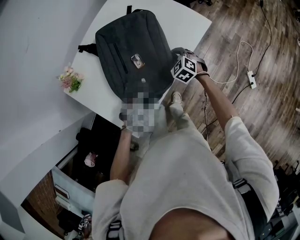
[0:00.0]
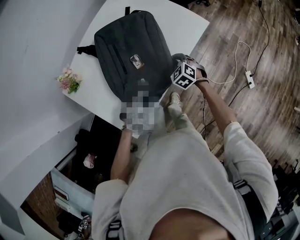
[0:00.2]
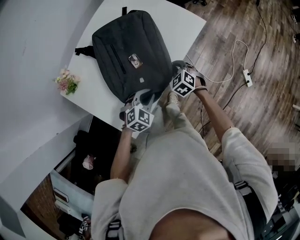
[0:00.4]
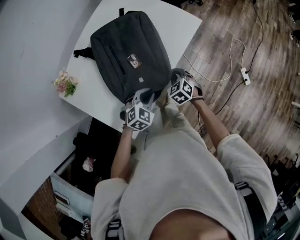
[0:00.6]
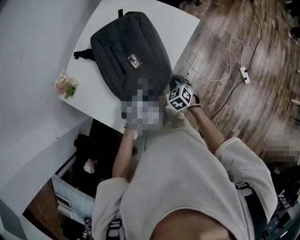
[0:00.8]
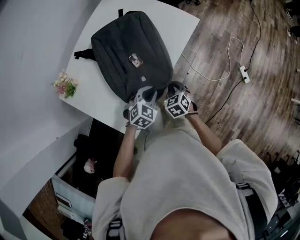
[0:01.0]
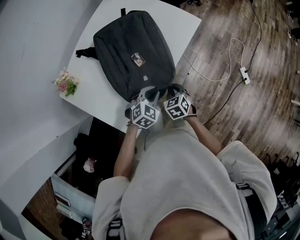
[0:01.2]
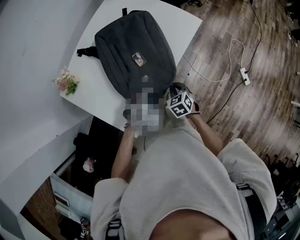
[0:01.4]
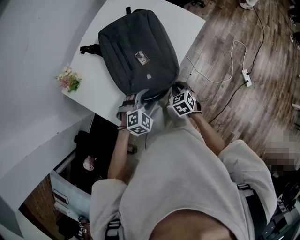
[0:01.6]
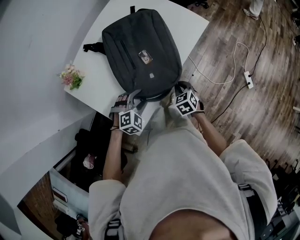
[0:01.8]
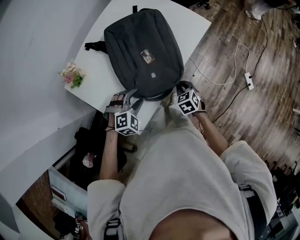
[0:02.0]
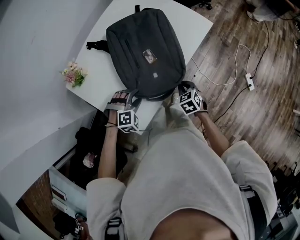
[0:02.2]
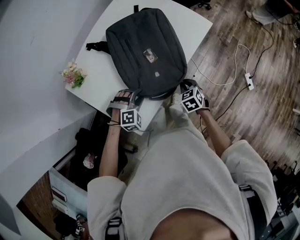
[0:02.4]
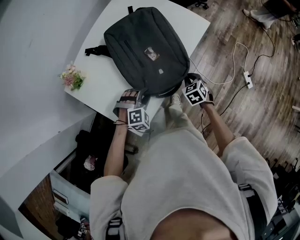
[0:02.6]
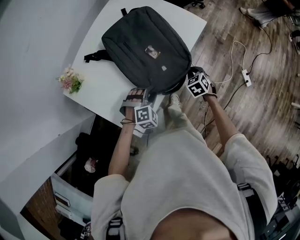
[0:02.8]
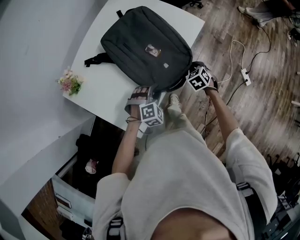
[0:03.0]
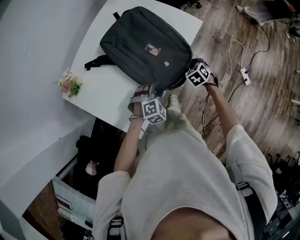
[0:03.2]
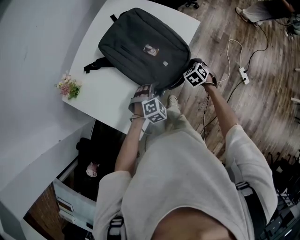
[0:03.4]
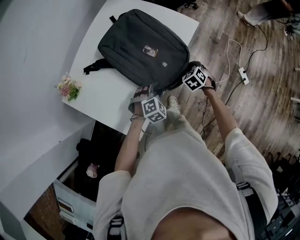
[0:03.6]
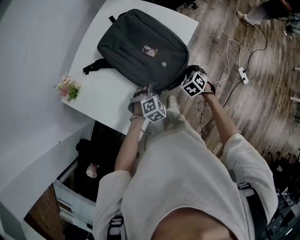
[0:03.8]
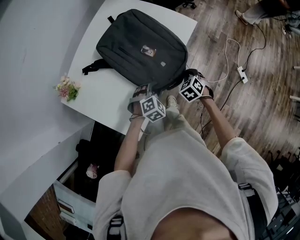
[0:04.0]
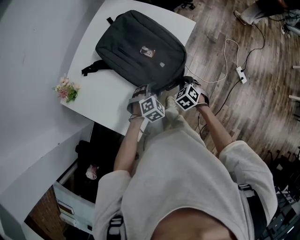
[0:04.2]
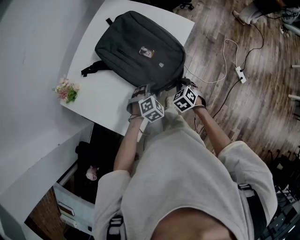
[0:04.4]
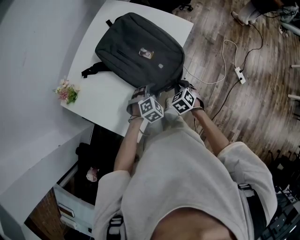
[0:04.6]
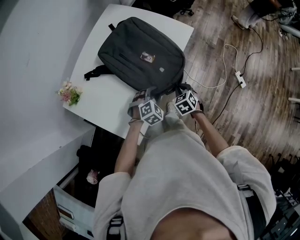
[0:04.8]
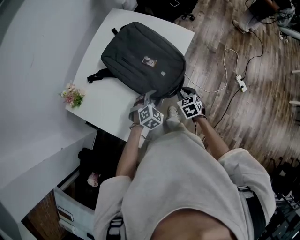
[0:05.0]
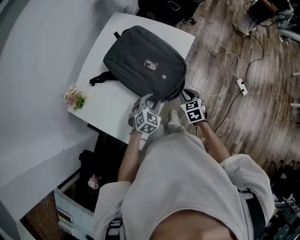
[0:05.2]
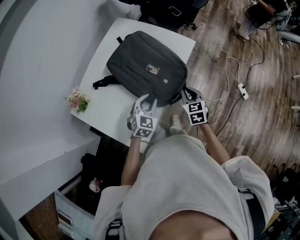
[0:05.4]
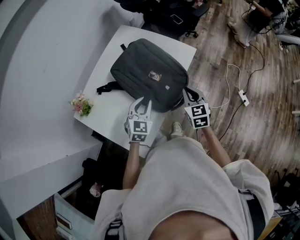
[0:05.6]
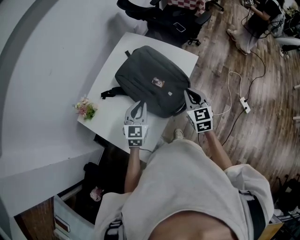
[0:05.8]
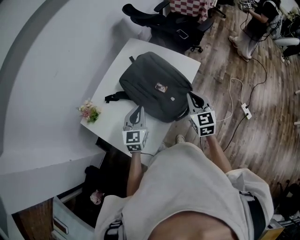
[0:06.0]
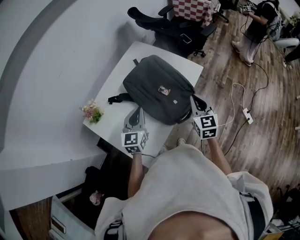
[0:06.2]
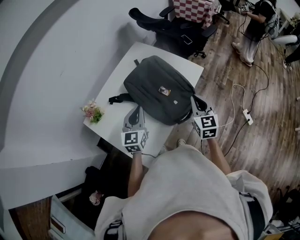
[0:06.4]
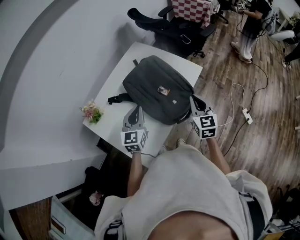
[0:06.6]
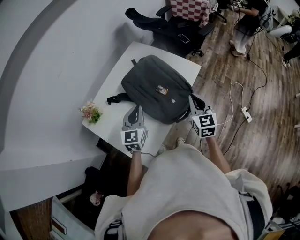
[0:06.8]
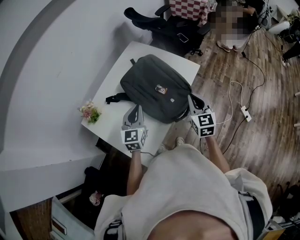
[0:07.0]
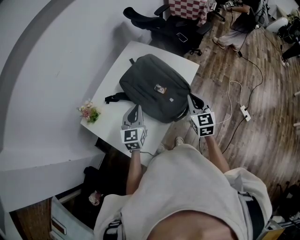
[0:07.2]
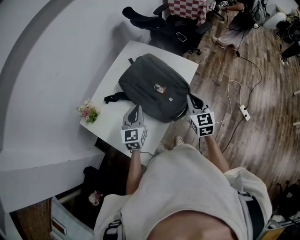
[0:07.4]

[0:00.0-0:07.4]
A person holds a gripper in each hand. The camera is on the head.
0.0 to 1.4 s: The right gripper is displaced backward by some 15 cm, and turns by about 30 degrees. The left gripper opens its fingers.
1.4 to 3.0 s: The left gripper reaches some 15 cm to the left, then returns, and swivels about 20 degrees; the right gripper goes about 15 cm forward and to the right.
3.0 to 4.4 s: The right gripper heads backward, covering roughly 10 cm.
4.4 to 6.0 s: The right gripper is displaced upward by approximately 25 cm, and angles its fingers upward, by approximately 40 degrees. The left gripper heads upward and to the left, covering about 25 cm, tilts its fingers some 40 degrees upward, and closes its fingers.
6.0 to 7.4 s: There are only small adjustments of the grippers.

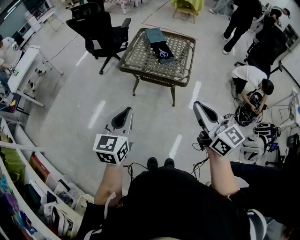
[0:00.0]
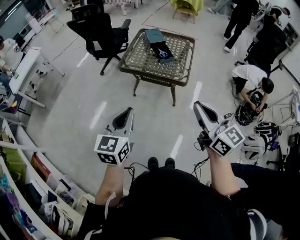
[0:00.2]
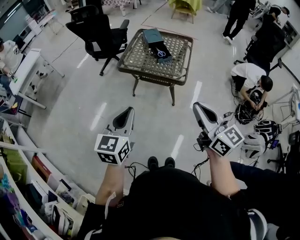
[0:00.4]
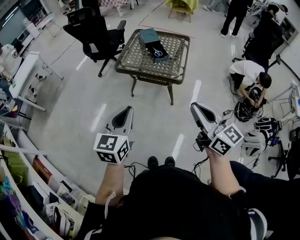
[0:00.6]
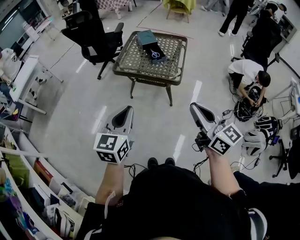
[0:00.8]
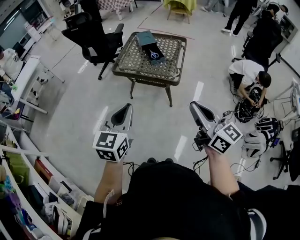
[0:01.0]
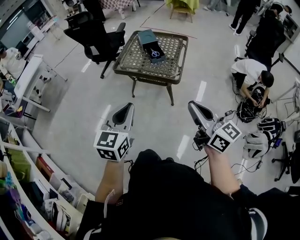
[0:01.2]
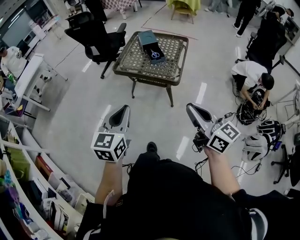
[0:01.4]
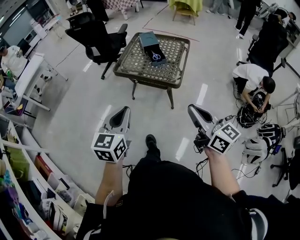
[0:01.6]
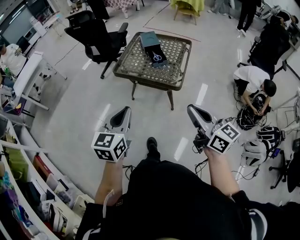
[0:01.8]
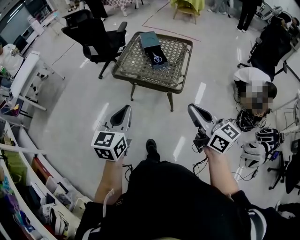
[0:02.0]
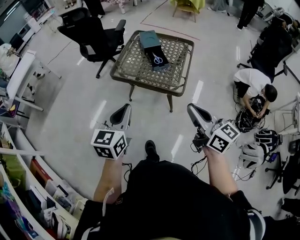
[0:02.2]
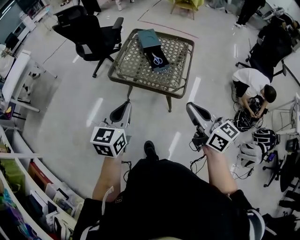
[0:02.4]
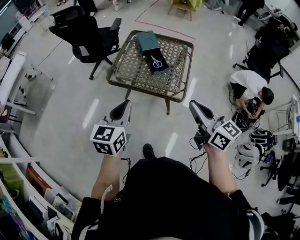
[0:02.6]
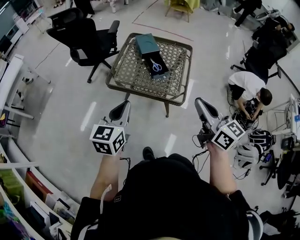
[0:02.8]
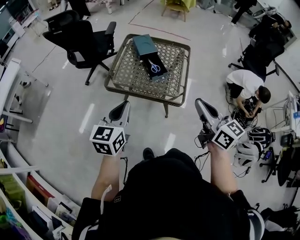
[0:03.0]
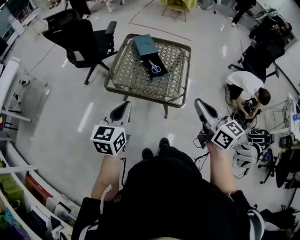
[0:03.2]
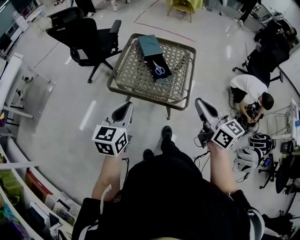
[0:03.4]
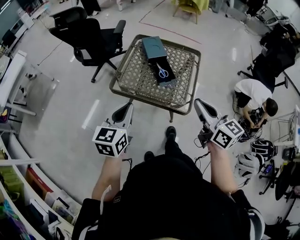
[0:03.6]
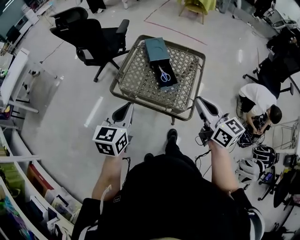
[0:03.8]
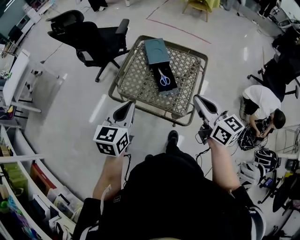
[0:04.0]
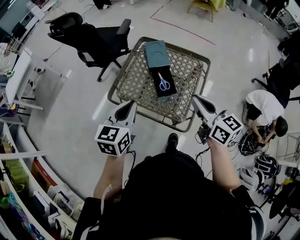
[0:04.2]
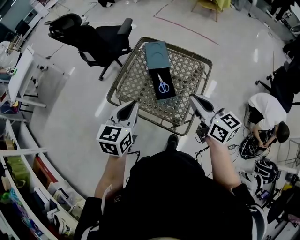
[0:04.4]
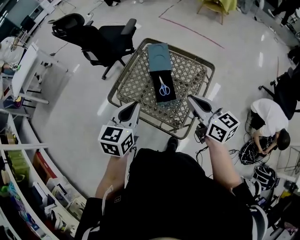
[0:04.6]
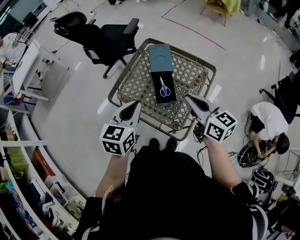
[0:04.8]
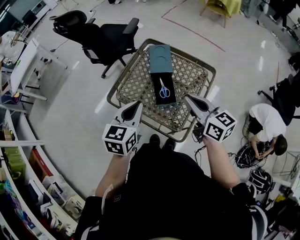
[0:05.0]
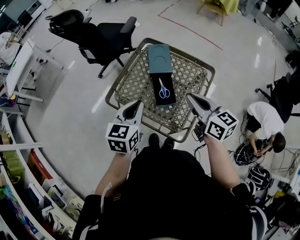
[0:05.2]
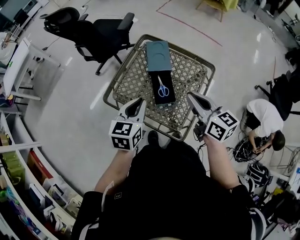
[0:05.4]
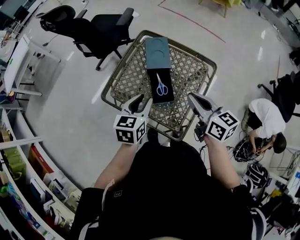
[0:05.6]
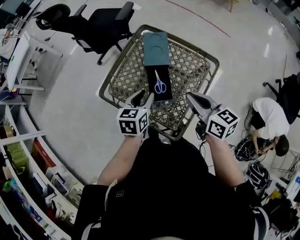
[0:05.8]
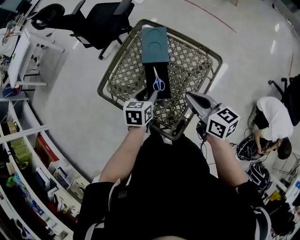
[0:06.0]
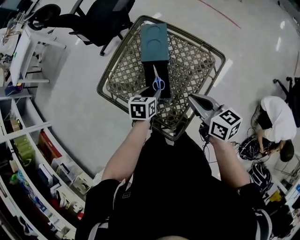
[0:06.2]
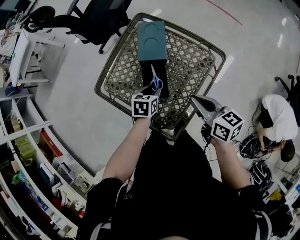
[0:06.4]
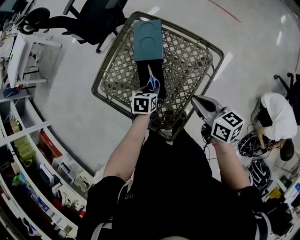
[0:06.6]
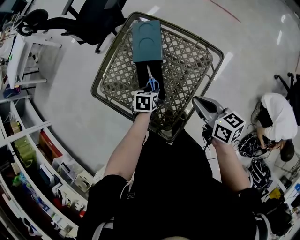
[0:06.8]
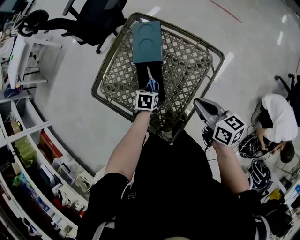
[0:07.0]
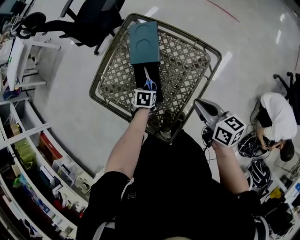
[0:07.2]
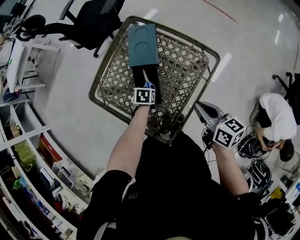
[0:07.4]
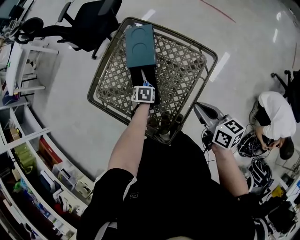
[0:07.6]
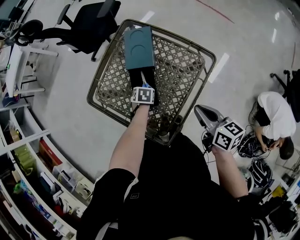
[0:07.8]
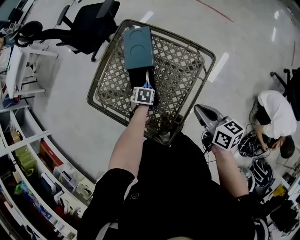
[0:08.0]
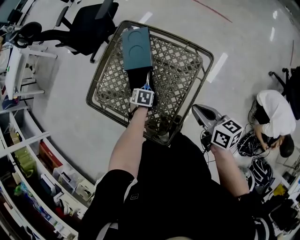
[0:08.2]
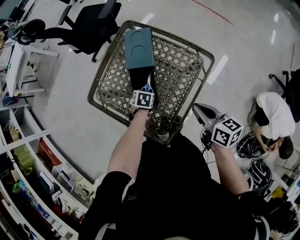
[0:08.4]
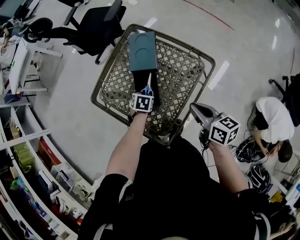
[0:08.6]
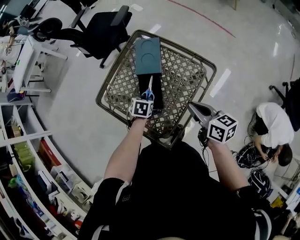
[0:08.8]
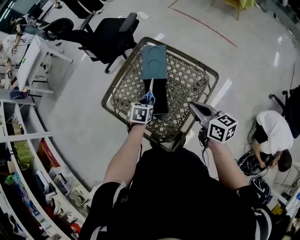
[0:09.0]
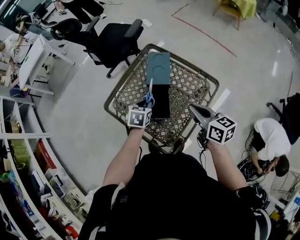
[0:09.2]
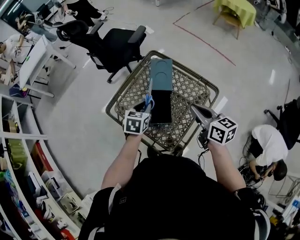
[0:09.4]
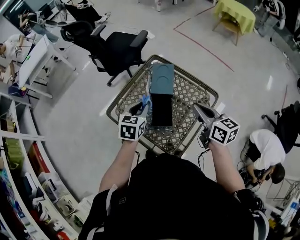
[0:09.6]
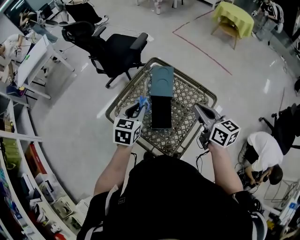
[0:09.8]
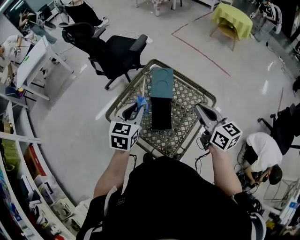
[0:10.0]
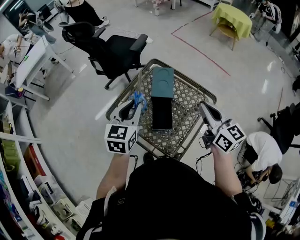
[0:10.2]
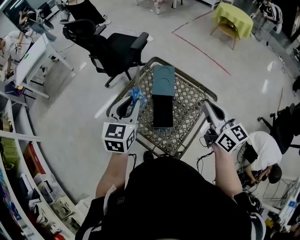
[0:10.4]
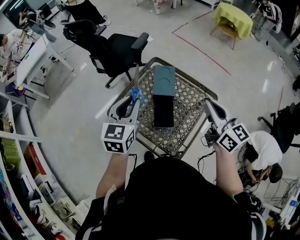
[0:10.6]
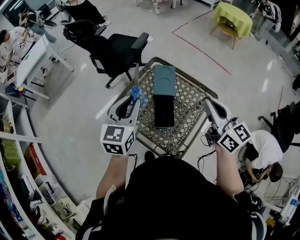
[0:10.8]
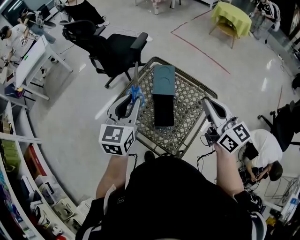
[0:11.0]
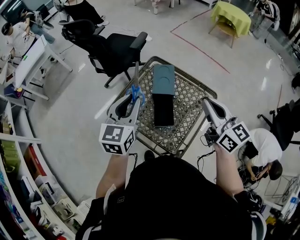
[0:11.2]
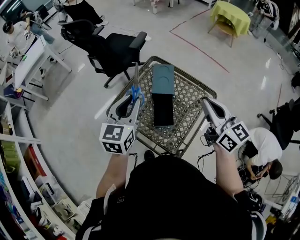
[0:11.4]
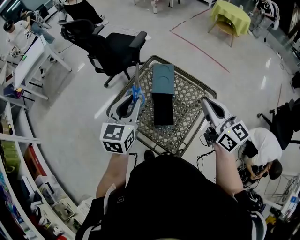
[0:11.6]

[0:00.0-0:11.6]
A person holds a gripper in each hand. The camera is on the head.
0.0 to 1.4 s: The grippers both shift to the right by some 10 cm.
1.4 to 2.8 s: The grippers both shift forward by about 25 cm.
2.8 to 4.4 s: The left gripper shifts some 25 cm forward and to the right. Meanwhile the right gripper goes approximately 25 cm forward.
4.4 to 5.8 s: The left gripper is displaced downward, forward and to the right by approximately 20 cm, and opens. The right gripper goes approximately 10 cm forward and downward.
5.8 to 7.2 s: The left gripper goes some 25 cm downward, and points its fingers some 30 degrees further downward, while the right gripper shifts approximately 15 cm to the right and downward.
7.2 to 8.8 s: The left gripper moves upward, approximately 5 cm.
8.8 to 10.2 s: The right gripper shifts about 15 cm upward, and rotates roughly 30 degrees; the left gripper travels upward by approximately 30 cm, and points its fingers approximately 40 degrees further upward.
10.2 to 11.6 s: The grippers make only small movements.

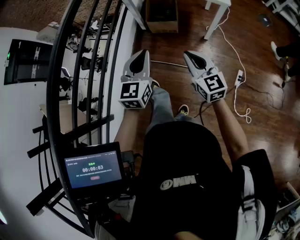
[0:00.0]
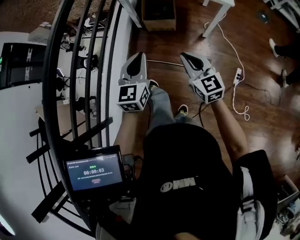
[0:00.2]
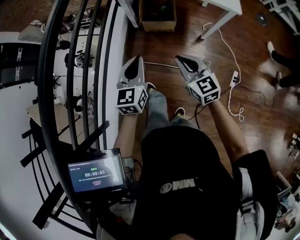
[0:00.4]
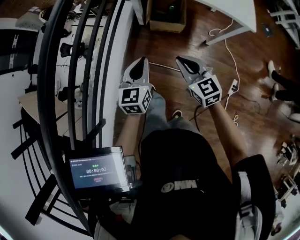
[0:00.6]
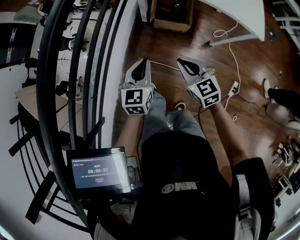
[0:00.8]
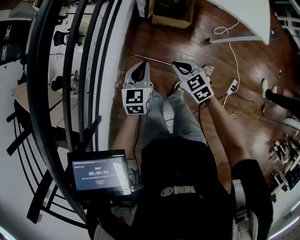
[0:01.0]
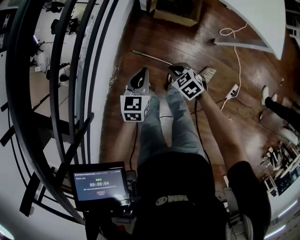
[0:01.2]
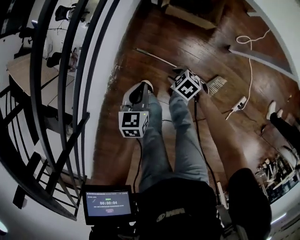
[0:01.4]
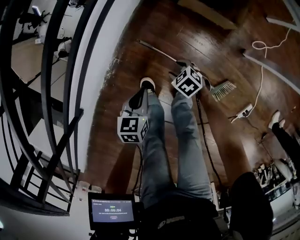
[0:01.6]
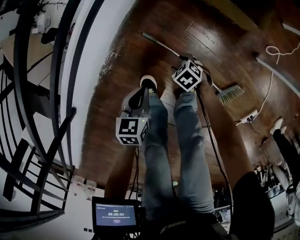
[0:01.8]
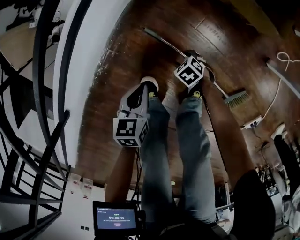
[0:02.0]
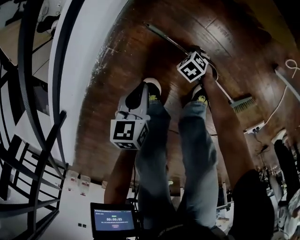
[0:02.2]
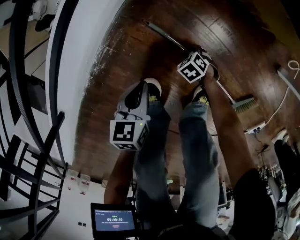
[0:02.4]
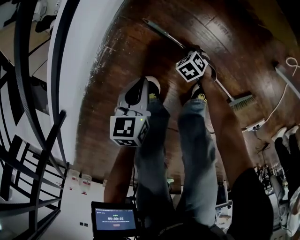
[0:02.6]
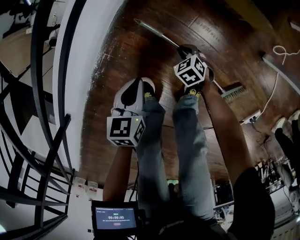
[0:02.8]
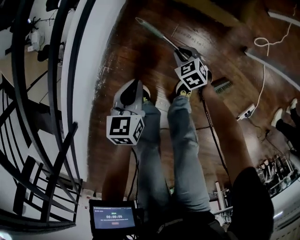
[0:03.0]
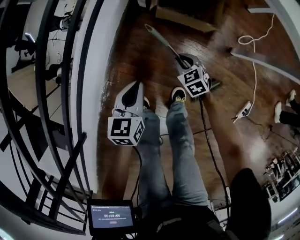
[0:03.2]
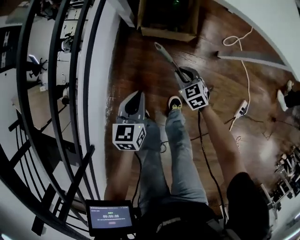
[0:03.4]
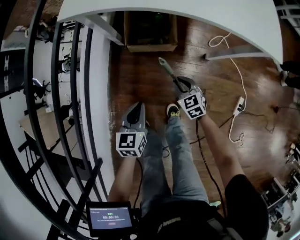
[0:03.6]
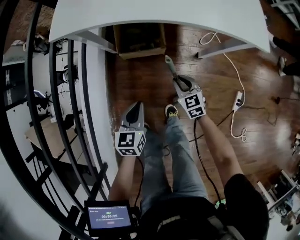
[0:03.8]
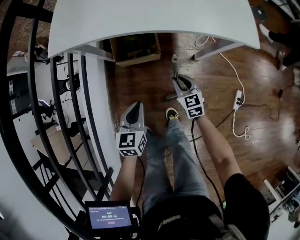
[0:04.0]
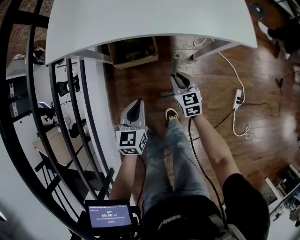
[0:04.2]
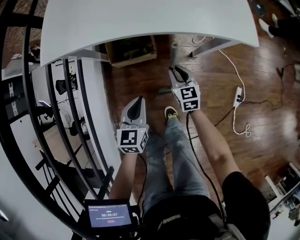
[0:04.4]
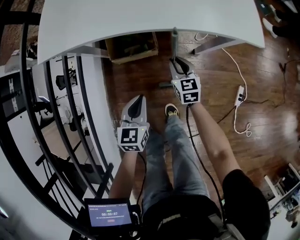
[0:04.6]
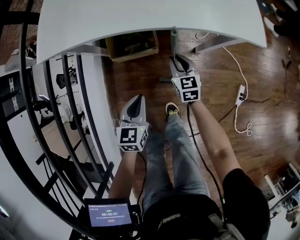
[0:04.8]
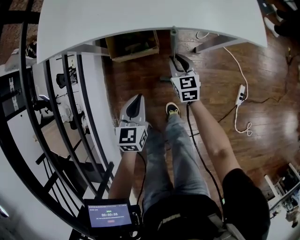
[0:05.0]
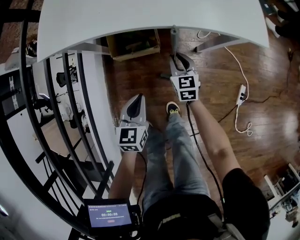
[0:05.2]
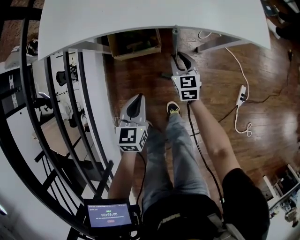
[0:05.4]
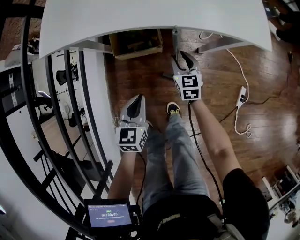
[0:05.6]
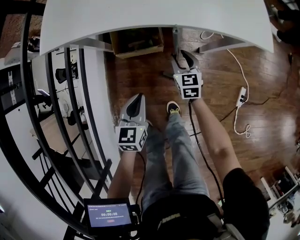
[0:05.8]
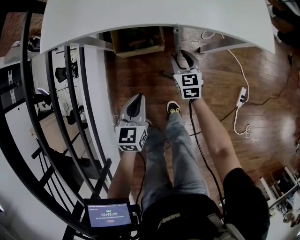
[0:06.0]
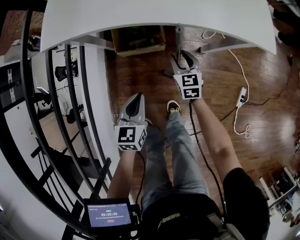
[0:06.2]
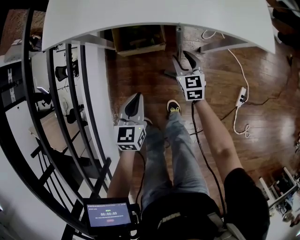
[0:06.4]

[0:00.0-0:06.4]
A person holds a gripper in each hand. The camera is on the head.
0.0 to 1.6 s: Both grippers move downward, roughly 50 cm. The right gripper angles its fingers downward, by some 60 degrees, and opens its fingers. Meanwhile the left gripper tilts its fingers some 40 degrees downward.
1.6 to 3.2 s: The left gripper moves about 20 cm downward and comes back; the right gripper goes downward and returns, about 30 cm each way, turns by some 30 degrees, and closes its fingers.
3.2 to 4.8 s: The right gripper shifts by approximately 30 cm, and changes its angle by approximately 50 degrees. The left gripper shifts by about 25 cm, and turns by approximately 20 degrees.
4.8 to 6.4 s: The right gripper opens up.
